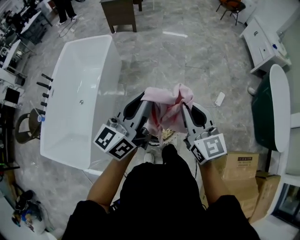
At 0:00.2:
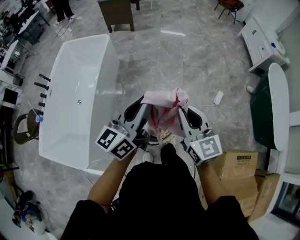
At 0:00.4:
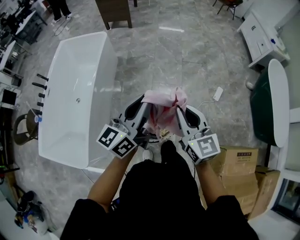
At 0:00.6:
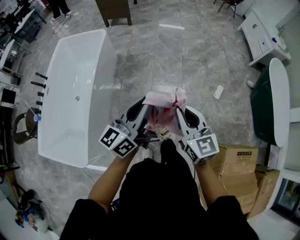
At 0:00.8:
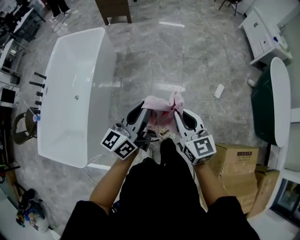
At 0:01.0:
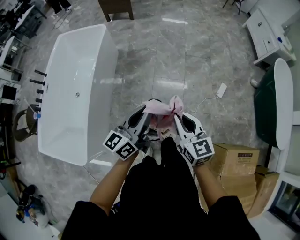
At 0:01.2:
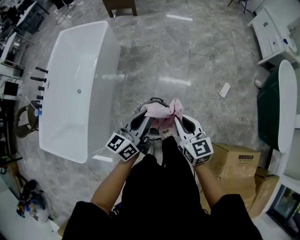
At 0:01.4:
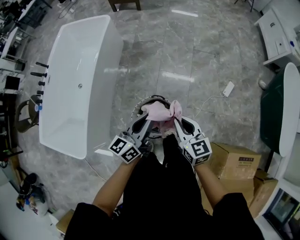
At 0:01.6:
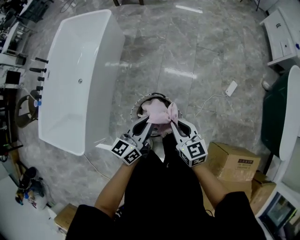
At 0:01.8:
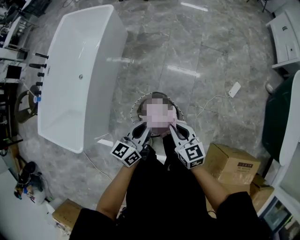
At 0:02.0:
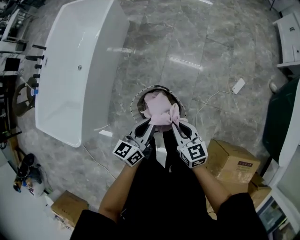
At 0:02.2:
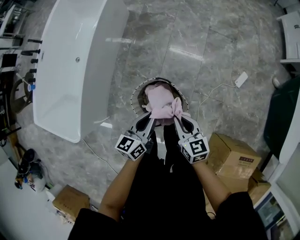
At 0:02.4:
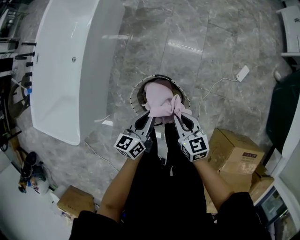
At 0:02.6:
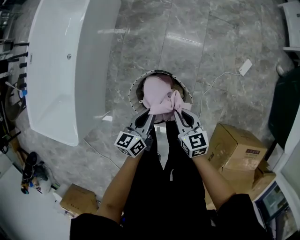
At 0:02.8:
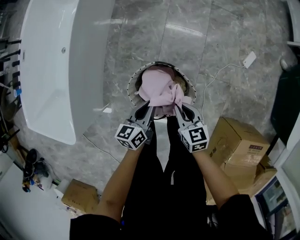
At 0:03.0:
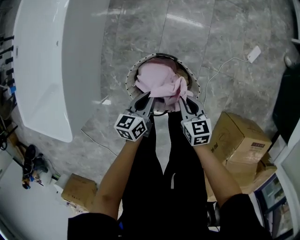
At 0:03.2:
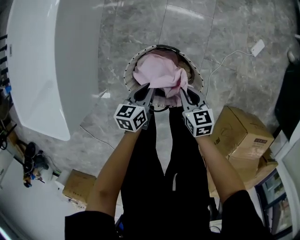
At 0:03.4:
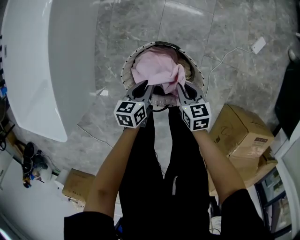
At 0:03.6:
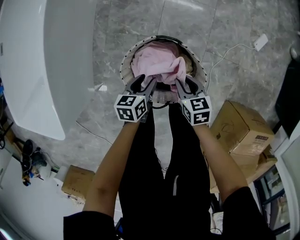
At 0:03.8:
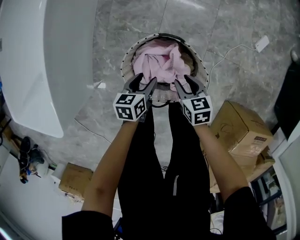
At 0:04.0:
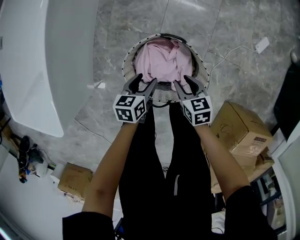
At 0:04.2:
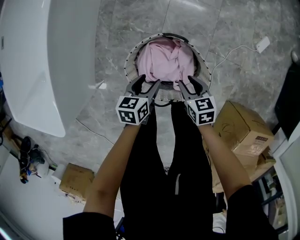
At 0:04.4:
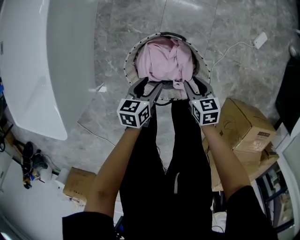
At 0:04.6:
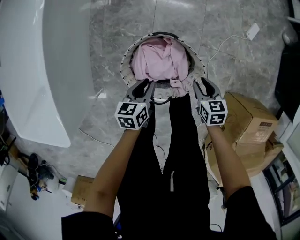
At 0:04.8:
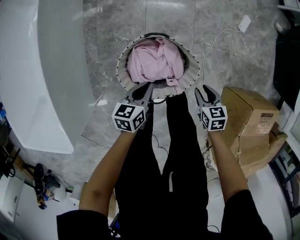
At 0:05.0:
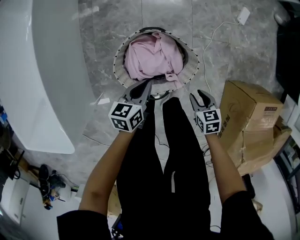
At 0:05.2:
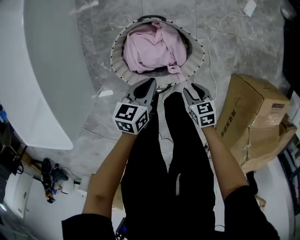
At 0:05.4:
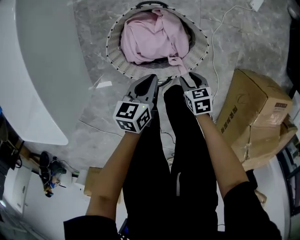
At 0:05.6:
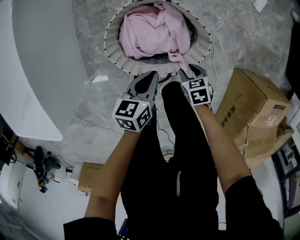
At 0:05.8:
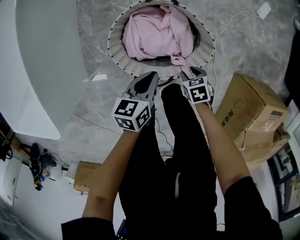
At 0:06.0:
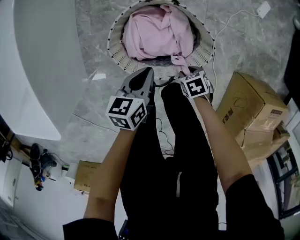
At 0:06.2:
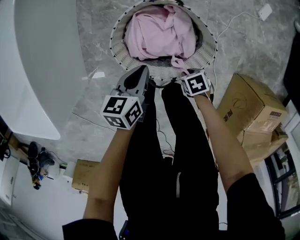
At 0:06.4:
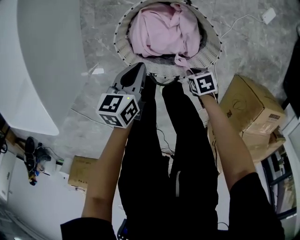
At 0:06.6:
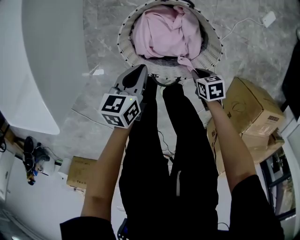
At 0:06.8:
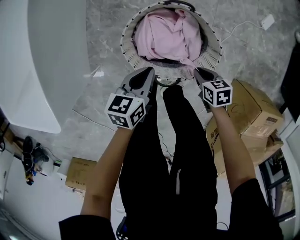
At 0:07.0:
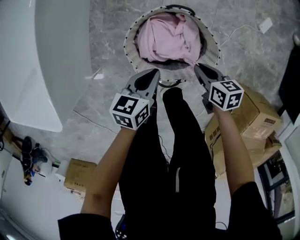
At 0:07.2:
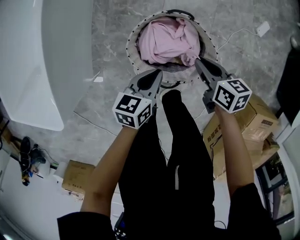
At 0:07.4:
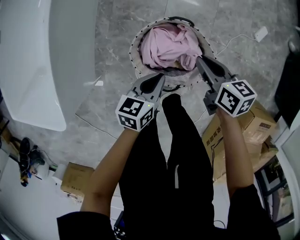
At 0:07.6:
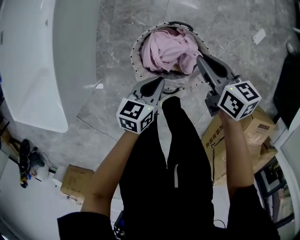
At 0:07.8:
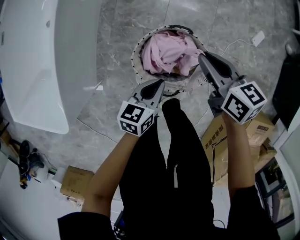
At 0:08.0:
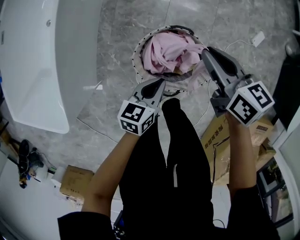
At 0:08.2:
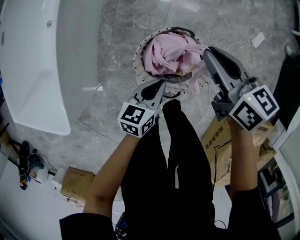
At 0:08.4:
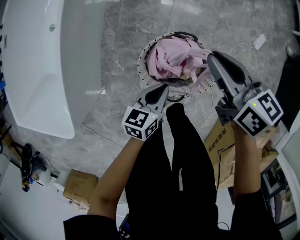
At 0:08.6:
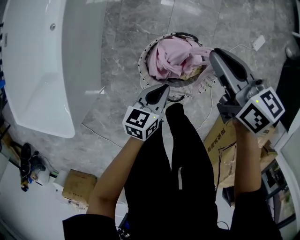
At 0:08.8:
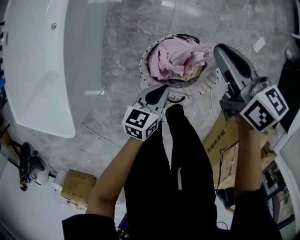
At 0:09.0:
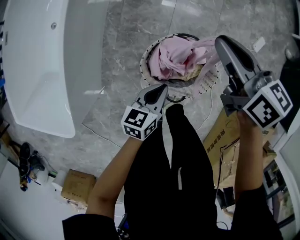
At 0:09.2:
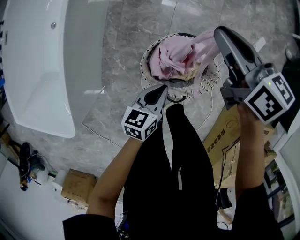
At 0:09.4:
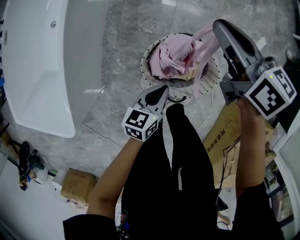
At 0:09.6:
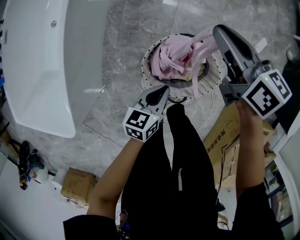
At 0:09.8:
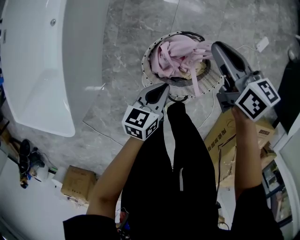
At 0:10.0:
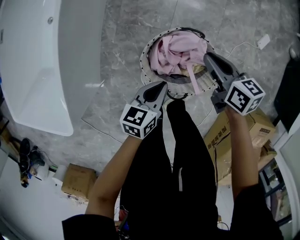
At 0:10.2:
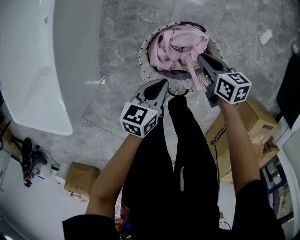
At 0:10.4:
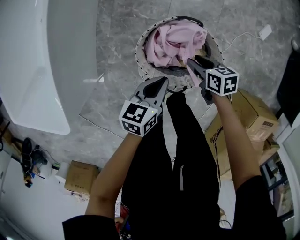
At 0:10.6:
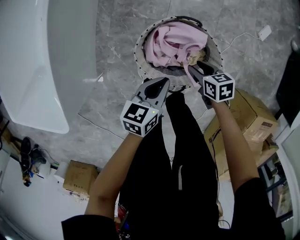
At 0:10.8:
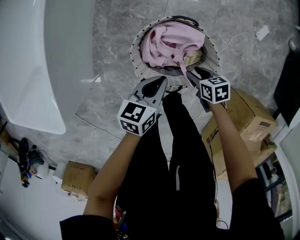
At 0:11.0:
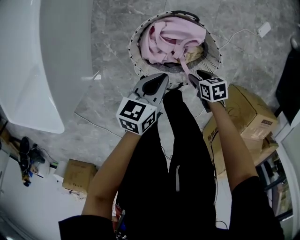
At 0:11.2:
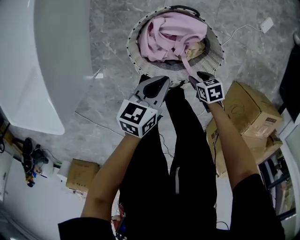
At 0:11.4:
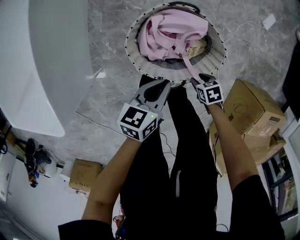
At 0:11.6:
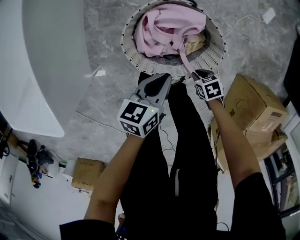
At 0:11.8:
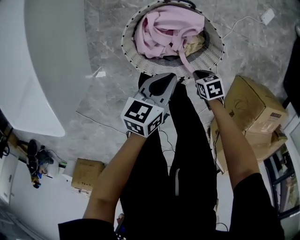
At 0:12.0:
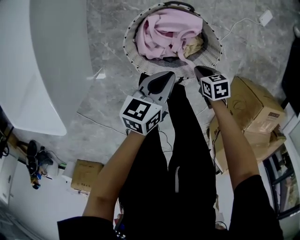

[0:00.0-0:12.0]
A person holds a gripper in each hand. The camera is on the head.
0:00.0 to 0:01.6: The grippers both shift downward by roughly 25 cm. The right gripper turns by about 30 degrees. Meanwhile the left gripper swivels approximately 20 degrees.
0:01.6 to 0:03.0: Both grippers move downward, some 35 cm. The left gripper swivels roughly 30 degrees, while the right gripper rotates approximately 20 degrees.
0:03.0 to 0:04.4: The two grippers go some 10 cm downward. The left gripper opens up, while the right gripper opens up.
0:04.4 to 0:06.0: The right gripper goes some 15 cm downward, and swivels some 30 degrees, while the left gripper closes its fingers.
0:06.0 to 0:07.6: The left gripper is displaced upward by about 10 cm. Meanwhile the right gripper heads upward, covering approximately 30 cm, angles its fingers upward, by some 40 degrees, and closes up.
0:07.6 to 0:09.0: The right gripper travels upward, forward and to the left by roughly 20 cm.
0:09.0 to 0:10.4: The left gripper shifts by about 5 cm. Meanwhile the right gripper travels downward and backward by approximately 35 cm, changes its angle by about 30 degrees, and opens up.
0:10.4 to 0:12.0: The right gripper ends up approximately 15 cm from where it was, and closes, while the left gripper changes place by roughly 5 cm.

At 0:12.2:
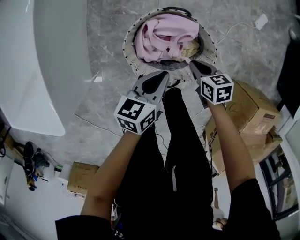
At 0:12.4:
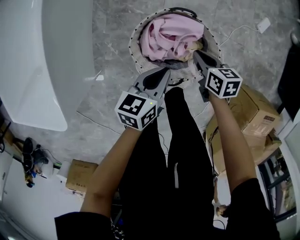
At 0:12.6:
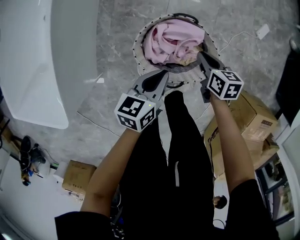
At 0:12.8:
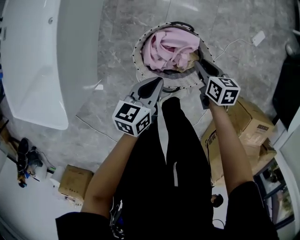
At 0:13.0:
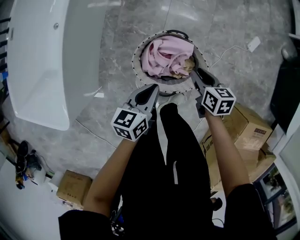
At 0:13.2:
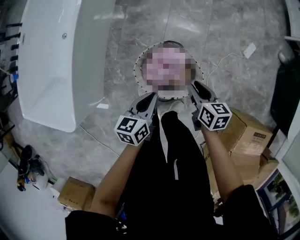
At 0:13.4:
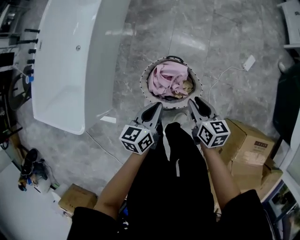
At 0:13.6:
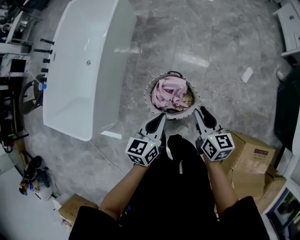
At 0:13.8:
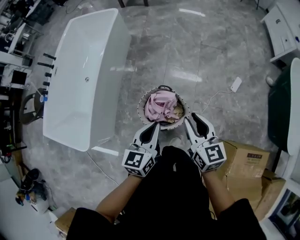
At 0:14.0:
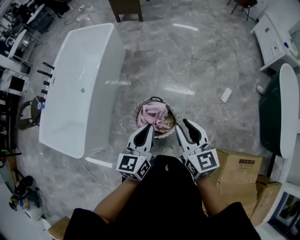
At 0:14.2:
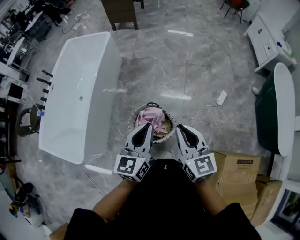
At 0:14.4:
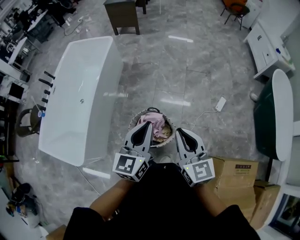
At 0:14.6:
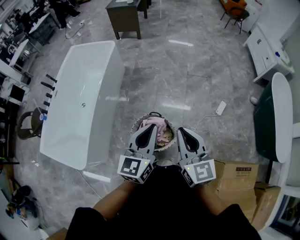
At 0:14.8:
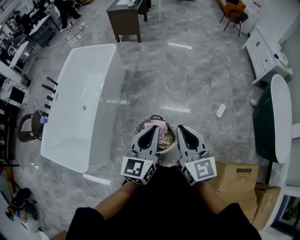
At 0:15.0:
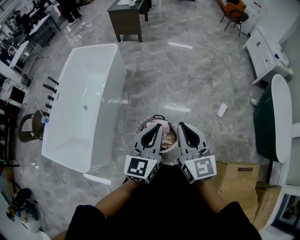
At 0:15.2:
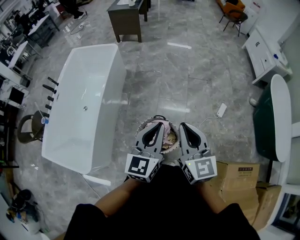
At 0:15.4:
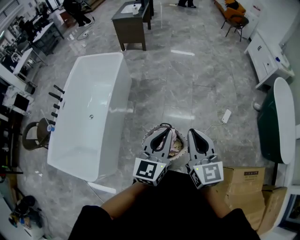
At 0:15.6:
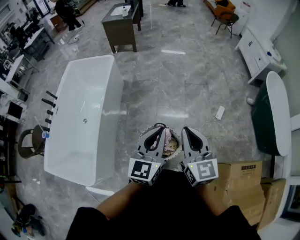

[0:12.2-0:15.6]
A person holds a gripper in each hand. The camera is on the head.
0:12.2 to 0:13.8: Both grippers travel together upward, about 50 cm. The left gripper turns by approximately 30 degrees. Meanwhile the right gripper angles its fingers upward, by some 40 degrees, and opens.
0:13.8 to 0:15.6: The two grippers go some 20 cm upward. The left gripper turns by about 20 degrees. Meanwhile the right gripper swivels some 20 degrees, and closes.

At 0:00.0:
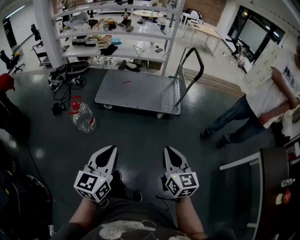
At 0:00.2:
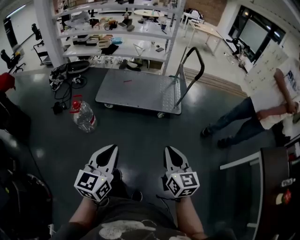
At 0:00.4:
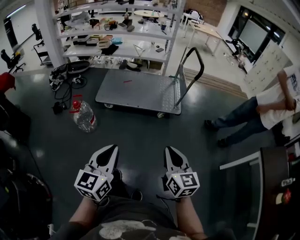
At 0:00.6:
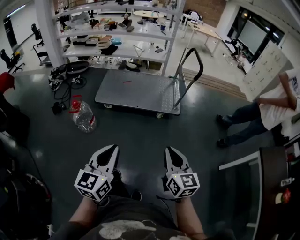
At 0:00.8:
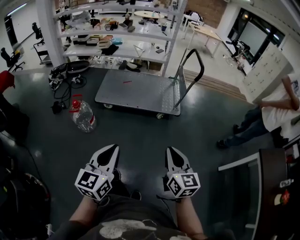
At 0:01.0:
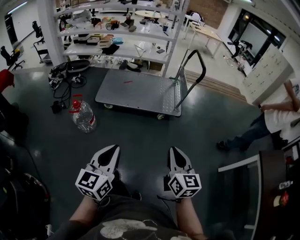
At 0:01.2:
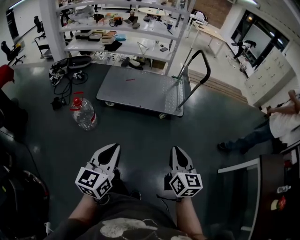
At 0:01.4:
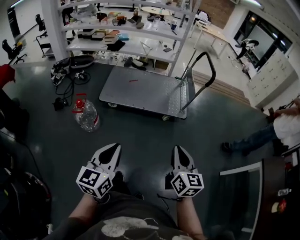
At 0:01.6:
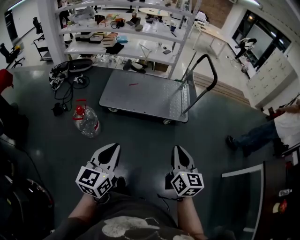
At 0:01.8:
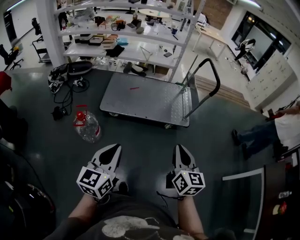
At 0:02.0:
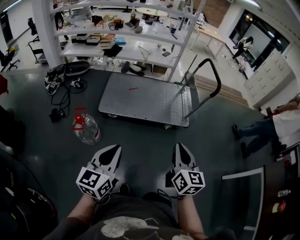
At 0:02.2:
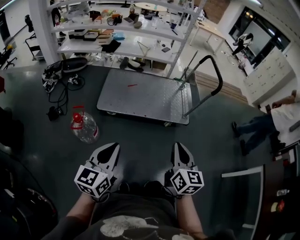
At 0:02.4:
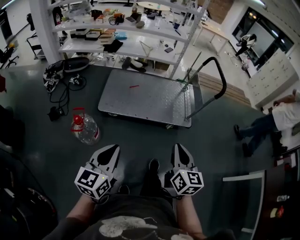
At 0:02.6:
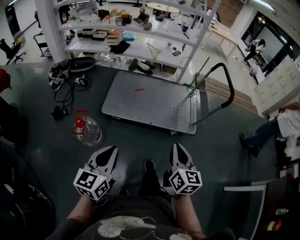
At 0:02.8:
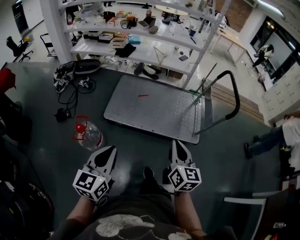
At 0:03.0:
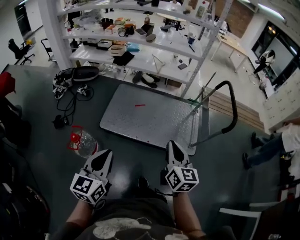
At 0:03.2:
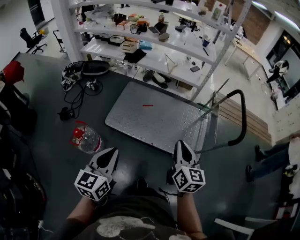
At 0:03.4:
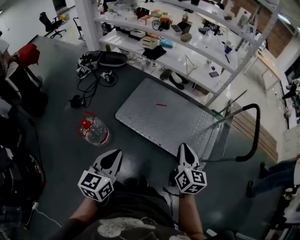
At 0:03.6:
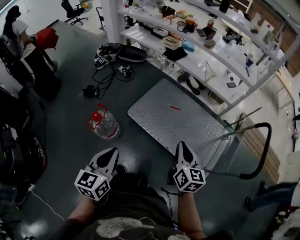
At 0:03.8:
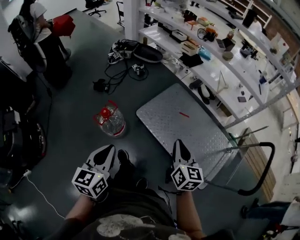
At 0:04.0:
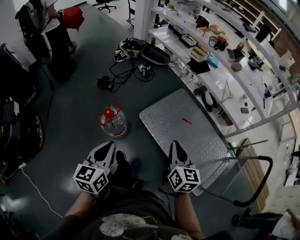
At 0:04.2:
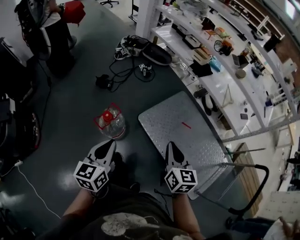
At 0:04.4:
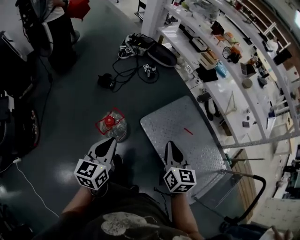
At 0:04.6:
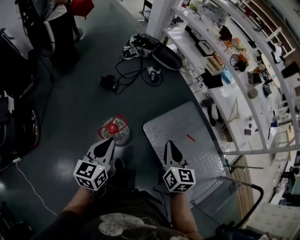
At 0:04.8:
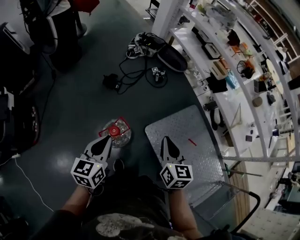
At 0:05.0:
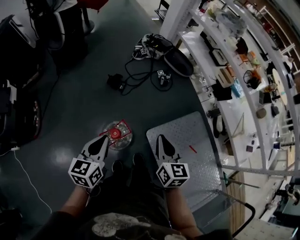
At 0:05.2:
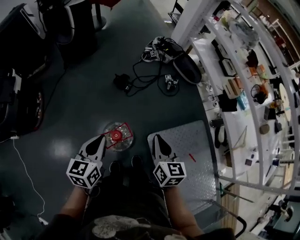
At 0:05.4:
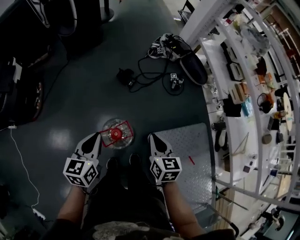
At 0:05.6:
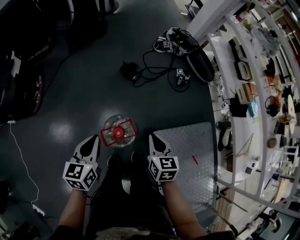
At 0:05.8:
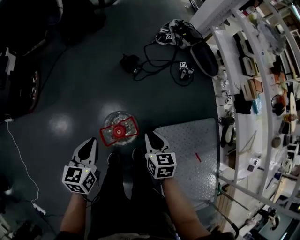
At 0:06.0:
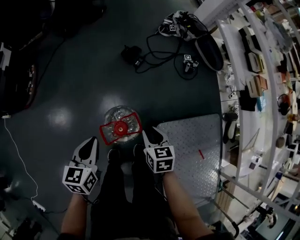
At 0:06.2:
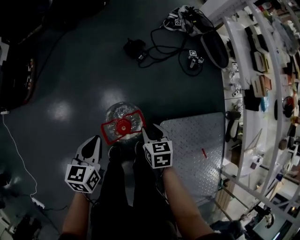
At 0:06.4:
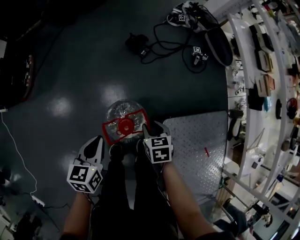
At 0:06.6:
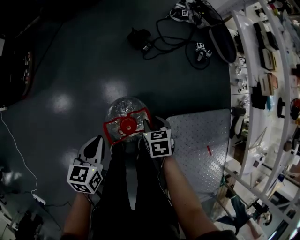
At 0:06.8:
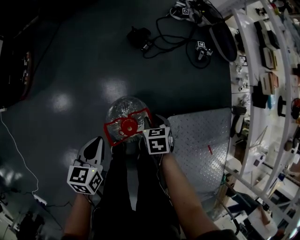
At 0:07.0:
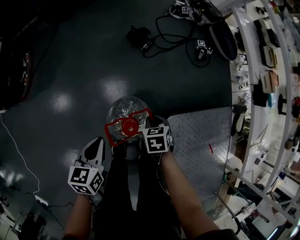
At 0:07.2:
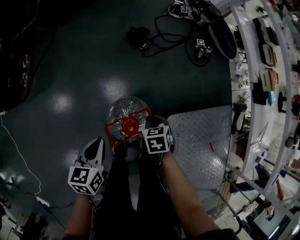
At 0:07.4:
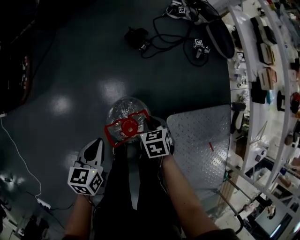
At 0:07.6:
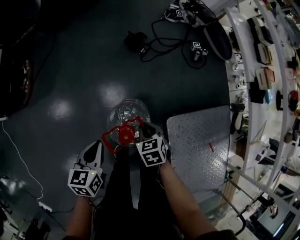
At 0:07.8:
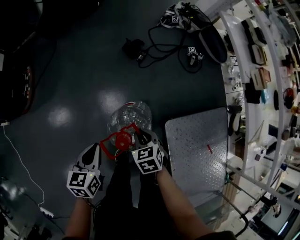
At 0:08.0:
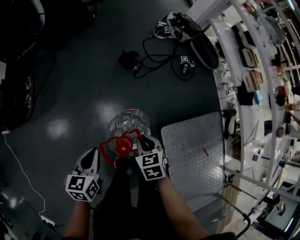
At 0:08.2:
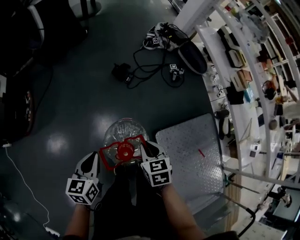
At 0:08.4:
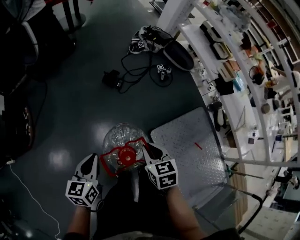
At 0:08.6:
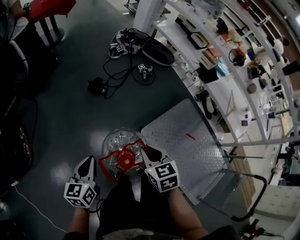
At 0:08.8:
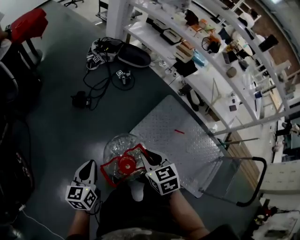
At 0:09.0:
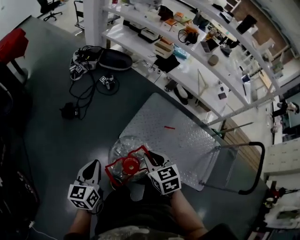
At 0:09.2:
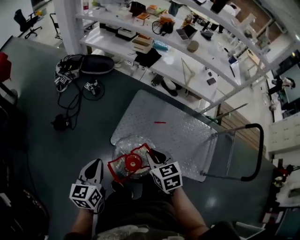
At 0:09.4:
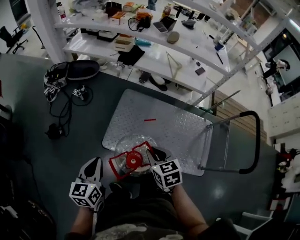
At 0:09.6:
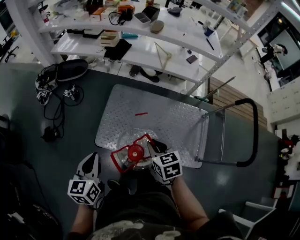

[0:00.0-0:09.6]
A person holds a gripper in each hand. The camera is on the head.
0:00.0 to 0:01.6: The right gripper goes about 10 cm forward and to the left. Meanwhile the left gripper goes roughly 15 cm to the left and forward.
0:01.6 to 0:03.2: The grippers both shift forward by some 40 cm.
0:03.2 to 0:04.8: Both grippers are carried about 50 cm. The right gripper swivels approximately 50 degrees. Meanwhile the left gripper swivels about 40 degrees.
0:04.8 to 0:06.4: Both grippers move downward, roughly 30 cm. The left gripper swivels roughly 30 degrees. Meanwhile the right gripper tilts its fingers approximately 40 degrees downward, and opens.
0:06.4 to 0:08.0: The left gripper shifts by roughly 5 cm. Meanwhile the right gripper heads upward and to the left, covering approximately 10 cm.
0:08.0 to 0:09.6: The two grippers travel together, about 50 cm. The right gripper turns by roughly 60 degrees. Meanwhile the left gripper turns by about 60 degrees.
